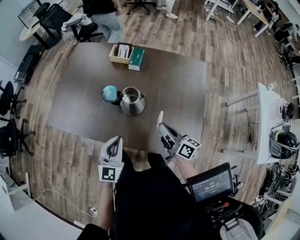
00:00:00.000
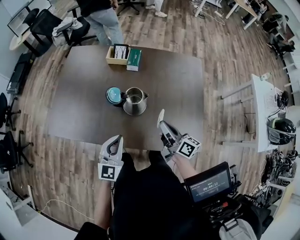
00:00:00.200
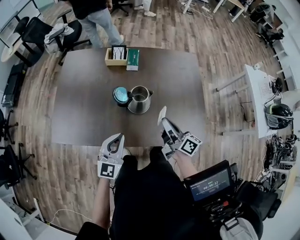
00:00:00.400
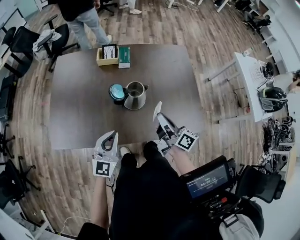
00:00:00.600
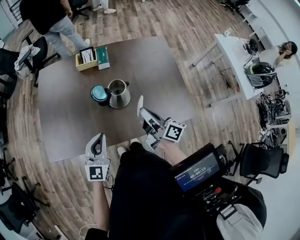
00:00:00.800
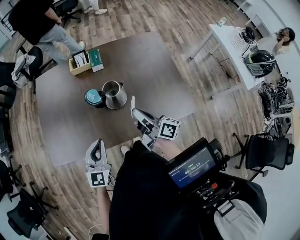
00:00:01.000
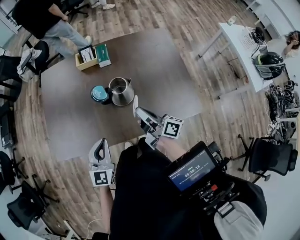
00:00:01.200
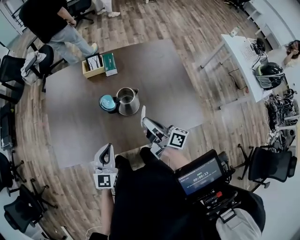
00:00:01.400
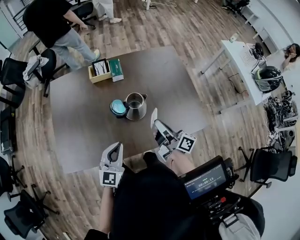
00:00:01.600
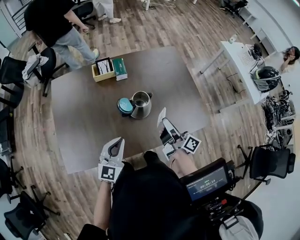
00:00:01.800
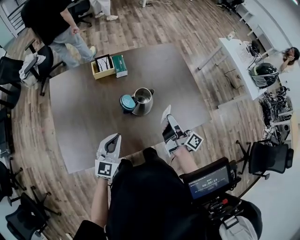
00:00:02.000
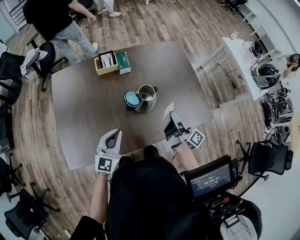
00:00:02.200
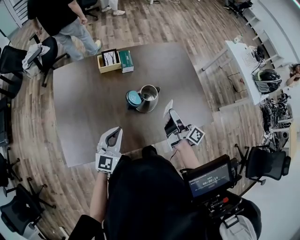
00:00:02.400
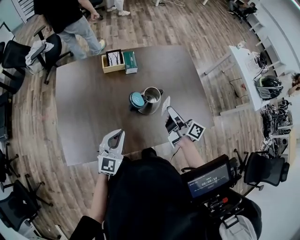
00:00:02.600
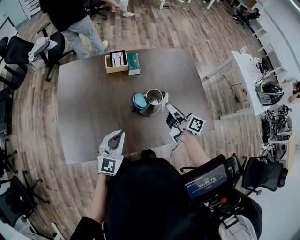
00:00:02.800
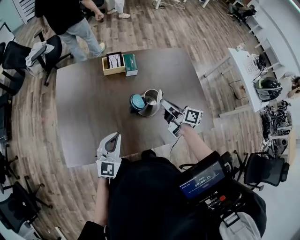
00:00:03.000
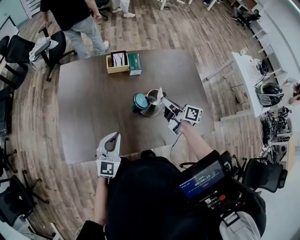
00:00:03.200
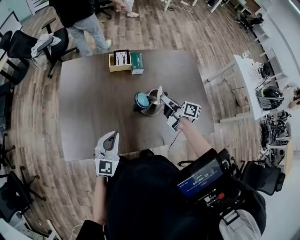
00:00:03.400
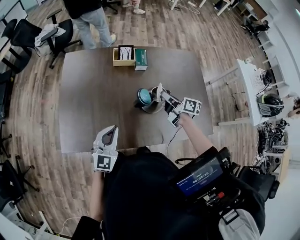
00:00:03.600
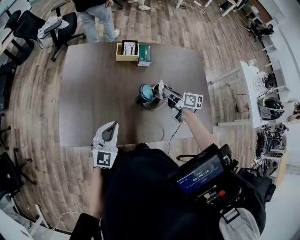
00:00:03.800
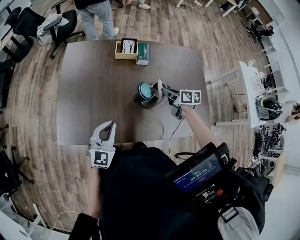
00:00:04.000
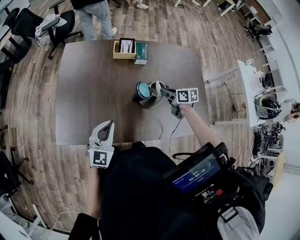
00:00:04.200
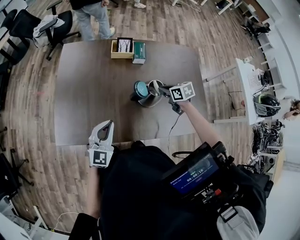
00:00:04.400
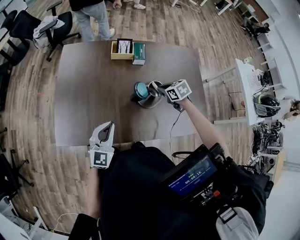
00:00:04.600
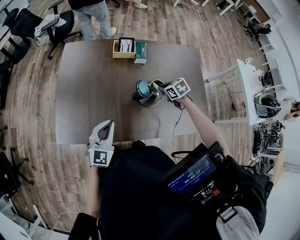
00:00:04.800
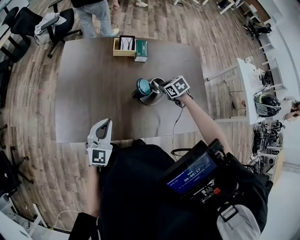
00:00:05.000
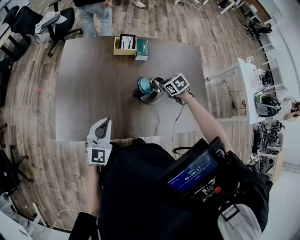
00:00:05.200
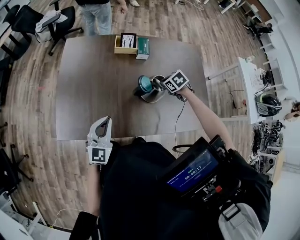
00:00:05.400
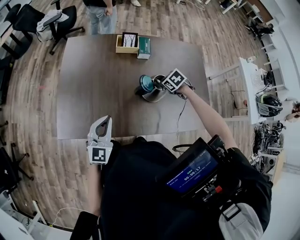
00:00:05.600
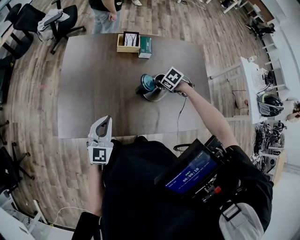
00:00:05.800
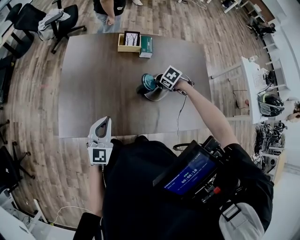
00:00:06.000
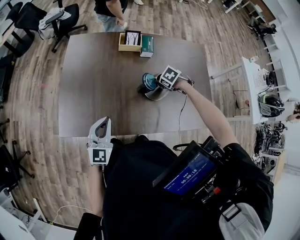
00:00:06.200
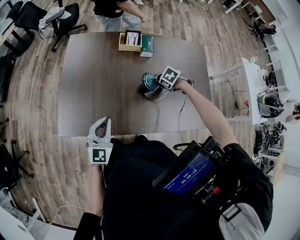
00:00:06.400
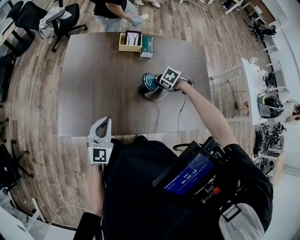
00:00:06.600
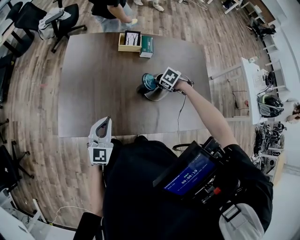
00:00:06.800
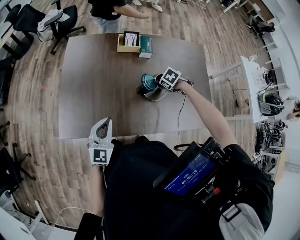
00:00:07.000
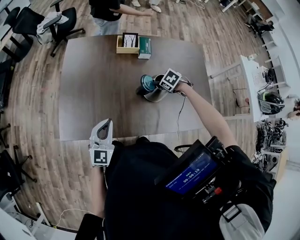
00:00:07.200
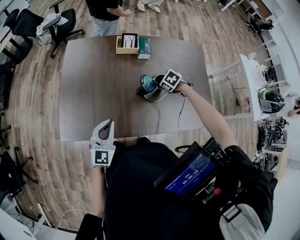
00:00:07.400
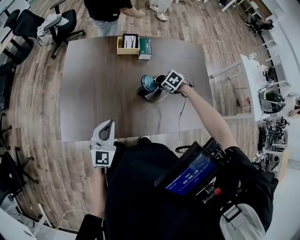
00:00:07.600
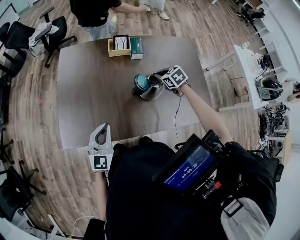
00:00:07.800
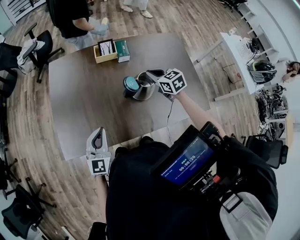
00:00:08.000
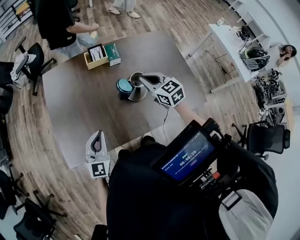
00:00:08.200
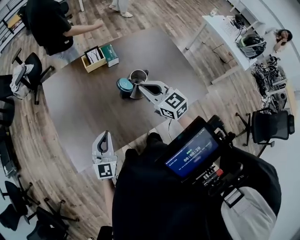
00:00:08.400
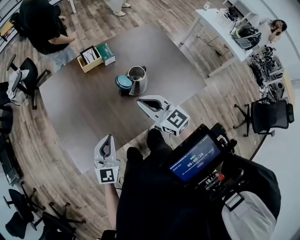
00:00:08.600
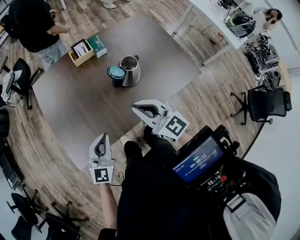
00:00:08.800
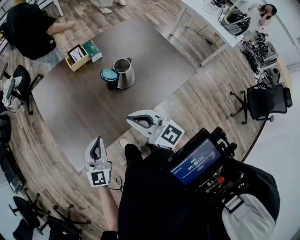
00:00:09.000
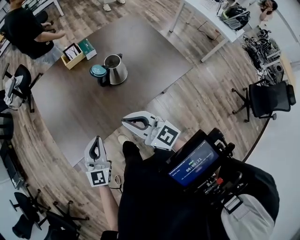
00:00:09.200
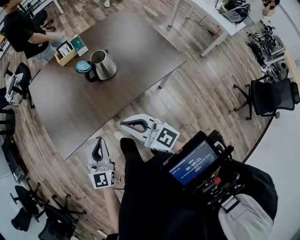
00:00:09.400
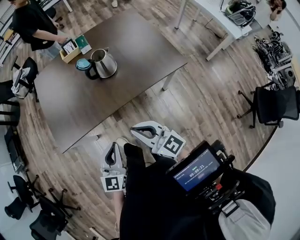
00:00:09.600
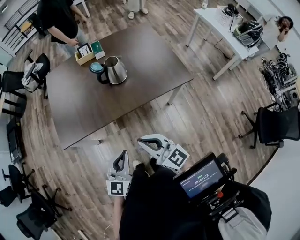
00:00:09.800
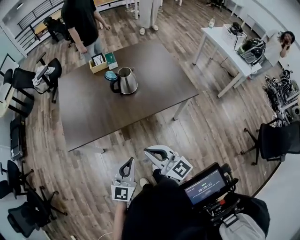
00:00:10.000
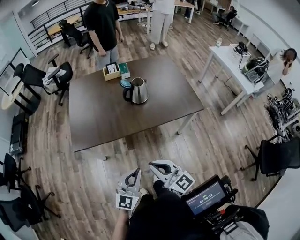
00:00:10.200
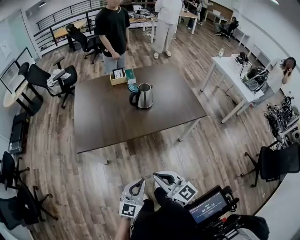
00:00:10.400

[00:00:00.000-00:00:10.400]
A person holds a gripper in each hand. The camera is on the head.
00:00:00.000 to 00:00:01.400: The grippers both shift to the left by some 15 cm. The right gripper rotates about 20 degrees. Meanwhile the left gripper changes its angle by roughly 20 degrees.
00:00:01.400 to 00:00:03.000: The left gripper is displaced to the left by some 10 cm, while the right gripper goes some 10 cm forward and to the left.
00:00:03.000 to 00:00:04.400: The right gripper moves downward, about 10 cm, and tilts its fingers approximately 40 degrees downward.
00:00:04.400 to 00:00:06.000: The right gripper travels downward by some 5 cm, and tilts its fingers about 30 degrees downward.
00:00:06.000 to 00:00:07.400: Both grippers stay put.
00:00:07.400 to 00:00:09.000: The left gripper shifts by roughly 5 cm, and turns by some 20 degrees; the right gripper changes place by some 40 cm, and tips its fingers upward by roughly 70 degrees.
00:00:09.000 to 00:00:10.400: Both grippers travel together backward, about 40 cm.

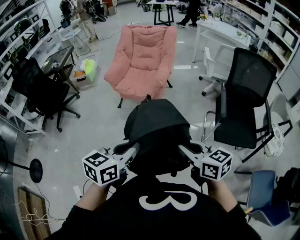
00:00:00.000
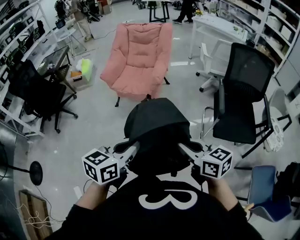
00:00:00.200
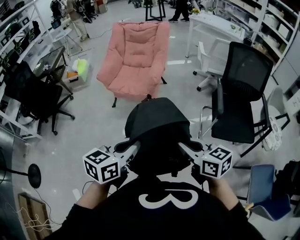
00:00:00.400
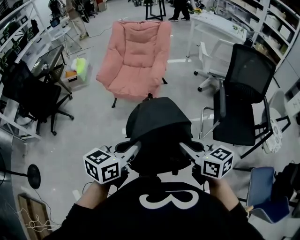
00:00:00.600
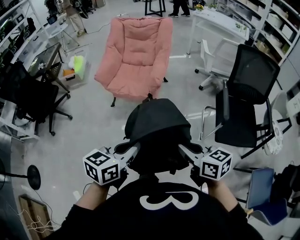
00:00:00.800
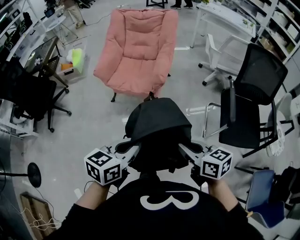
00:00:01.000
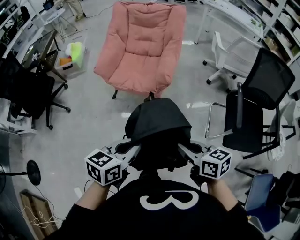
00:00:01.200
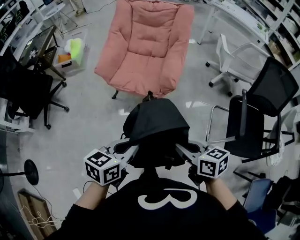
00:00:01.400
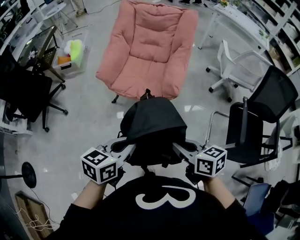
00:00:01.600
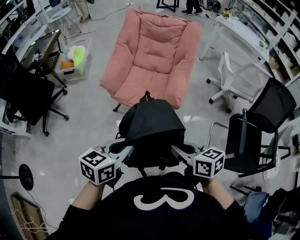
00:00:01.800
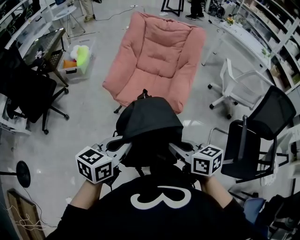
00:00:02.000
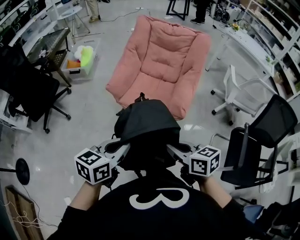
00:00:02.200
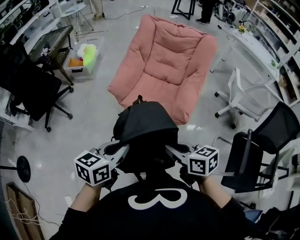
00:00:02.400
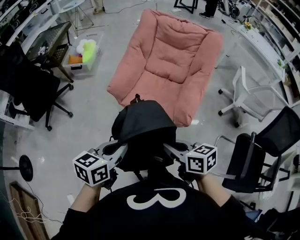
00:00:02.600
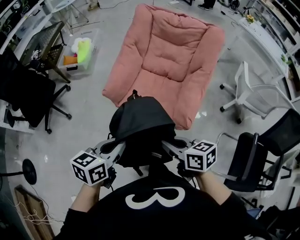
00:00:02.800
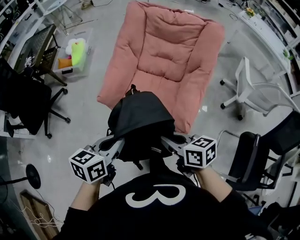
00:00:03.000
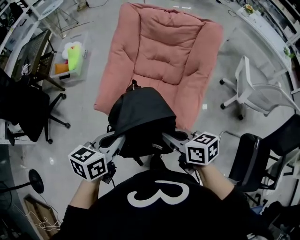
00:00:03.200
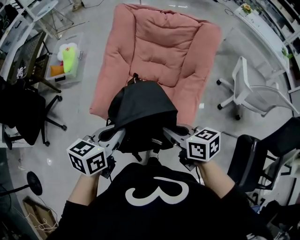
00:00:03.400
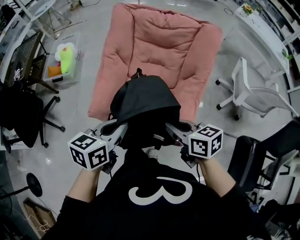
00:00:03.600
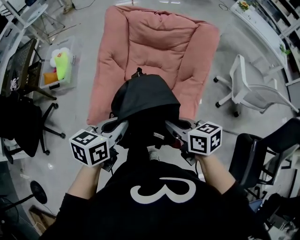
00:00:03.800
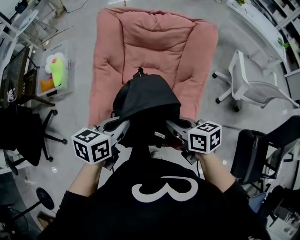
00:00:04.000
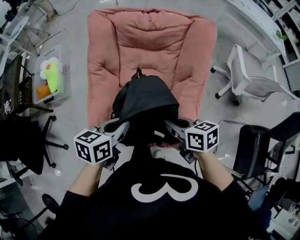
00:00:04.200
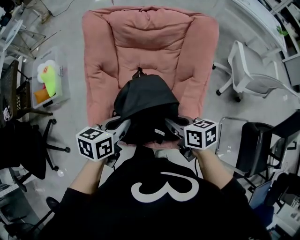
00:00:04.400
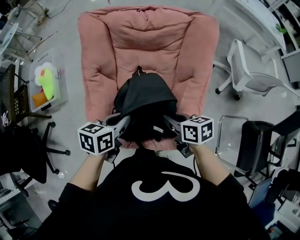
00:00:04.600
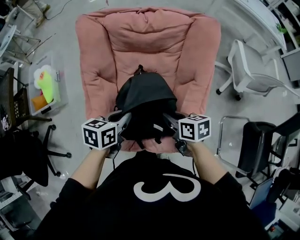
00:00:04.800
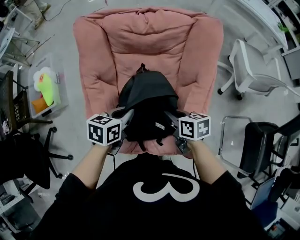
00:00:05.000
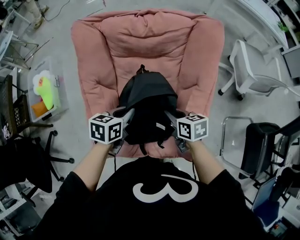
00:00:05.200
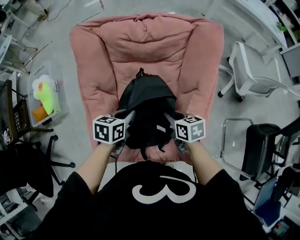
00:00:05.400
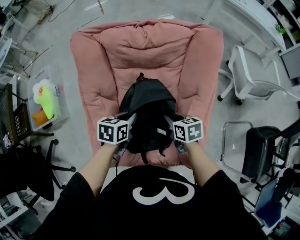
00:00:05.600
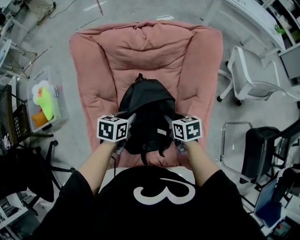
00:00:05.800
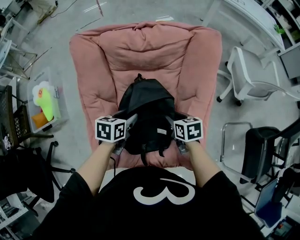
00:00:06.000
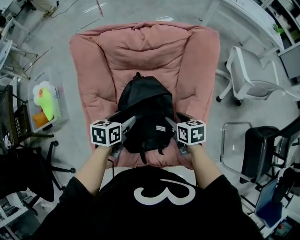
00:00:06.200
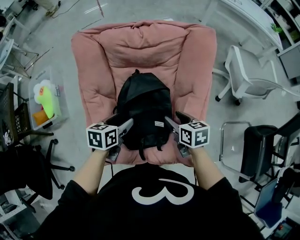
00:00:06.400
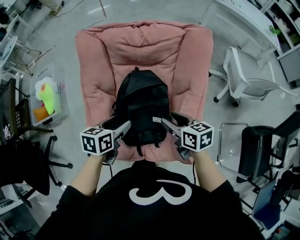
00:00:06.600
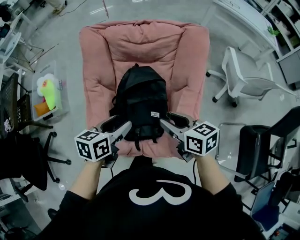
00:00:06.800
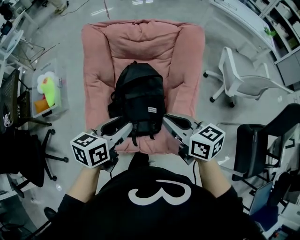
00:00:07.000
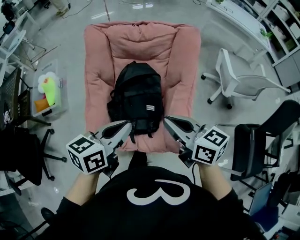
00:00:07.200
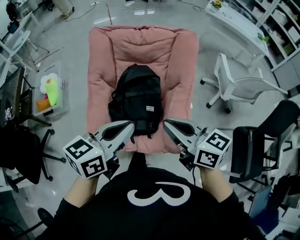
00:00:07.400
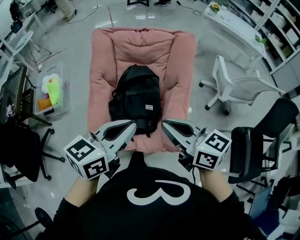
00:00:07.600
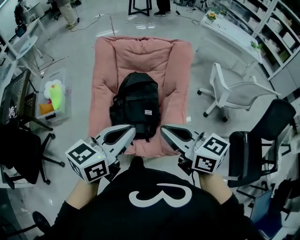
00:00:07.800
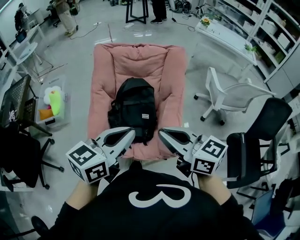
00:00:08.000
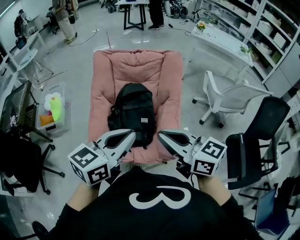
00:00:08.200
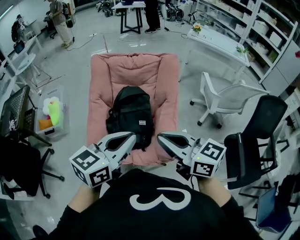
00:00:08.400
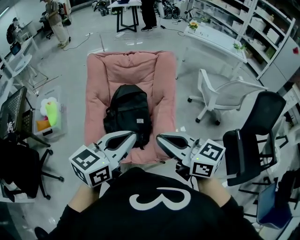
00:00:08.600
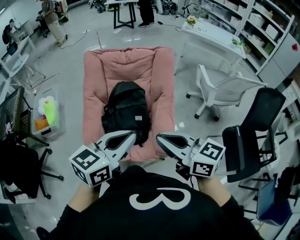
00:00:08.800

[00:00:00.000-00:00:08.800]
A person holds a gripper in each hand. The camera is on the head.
00:00:00.000 to 00:00:01.400: The two grippers go approximately 30 cm forward and downward.
00:00:01.400 to 00:00:03.000: The grippers both shift forward by about 35 cm.
00:00:03.000 to 00:00:04.400: Both grippers move forward, some 30 cm. The right gripper swivels about 20 degrees.
00:00:04.400 to 00:00:05.800: Both grippers travel together forward and downward, roughly 20 cm.
00:00:05.800 to 00:00:07.400: The grippers both shift upward and backward by approximately 40 cm. The right gripper tilts its fingers roughly 40 degrees upward, and opens, then closes again; the left gripper tilts its fingers approximately 30 degrees upward, and opens, then closes again.
00:00:07.400 to 00:00:08.800: Both grippers move backward and upward, some 15 cm.

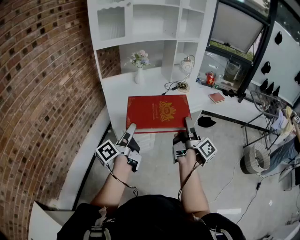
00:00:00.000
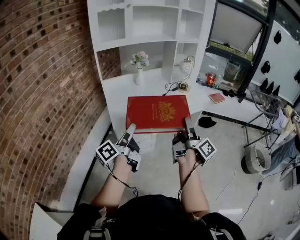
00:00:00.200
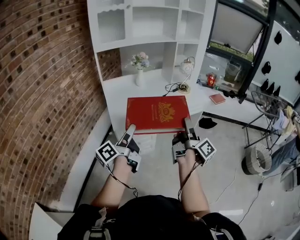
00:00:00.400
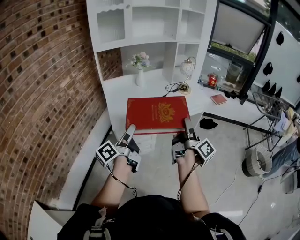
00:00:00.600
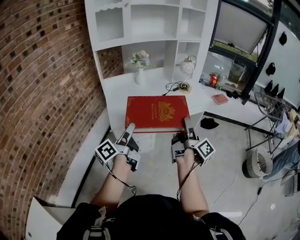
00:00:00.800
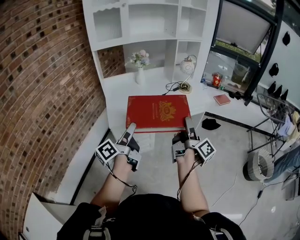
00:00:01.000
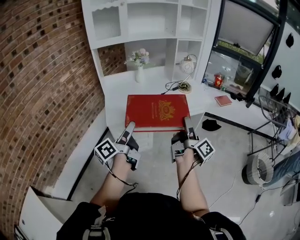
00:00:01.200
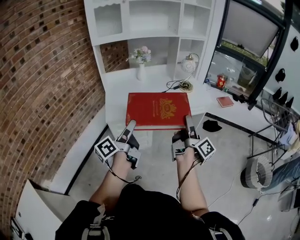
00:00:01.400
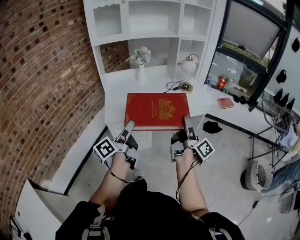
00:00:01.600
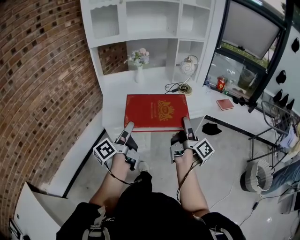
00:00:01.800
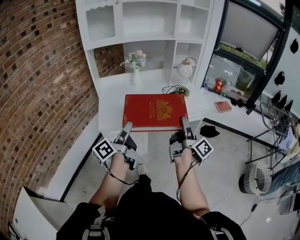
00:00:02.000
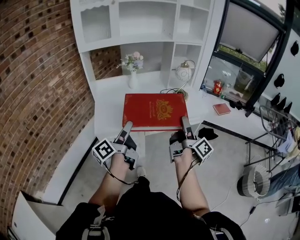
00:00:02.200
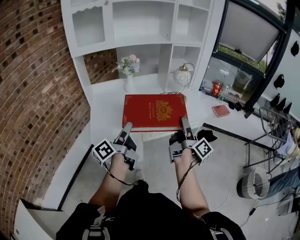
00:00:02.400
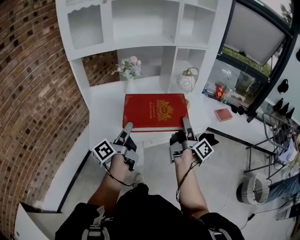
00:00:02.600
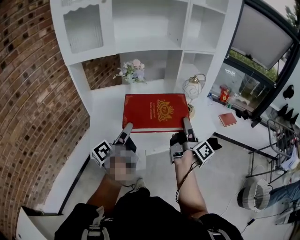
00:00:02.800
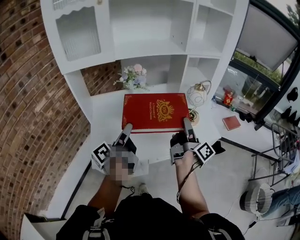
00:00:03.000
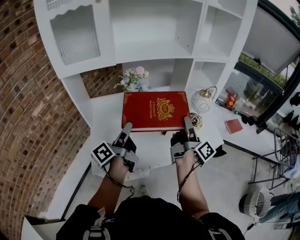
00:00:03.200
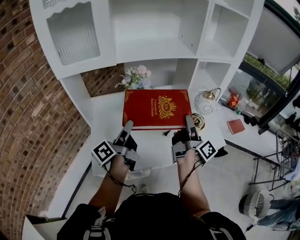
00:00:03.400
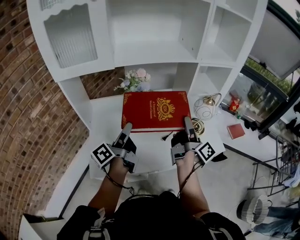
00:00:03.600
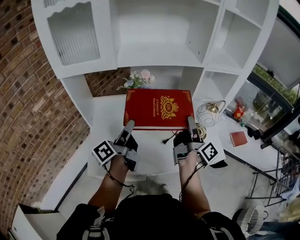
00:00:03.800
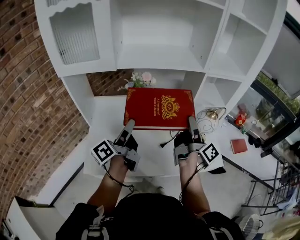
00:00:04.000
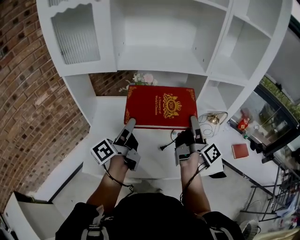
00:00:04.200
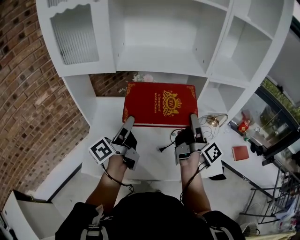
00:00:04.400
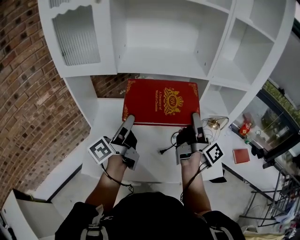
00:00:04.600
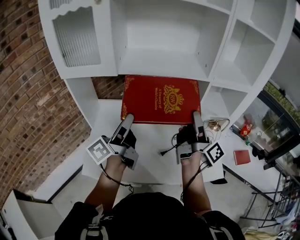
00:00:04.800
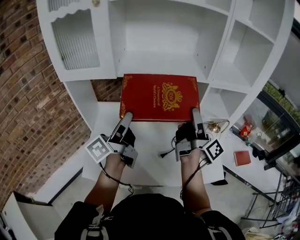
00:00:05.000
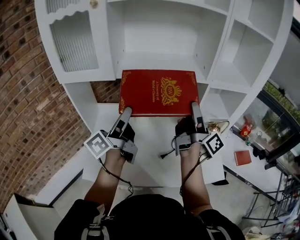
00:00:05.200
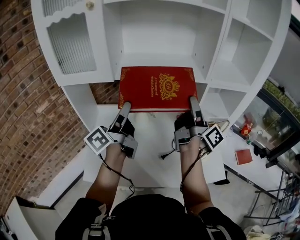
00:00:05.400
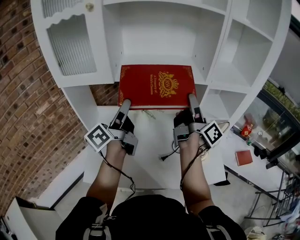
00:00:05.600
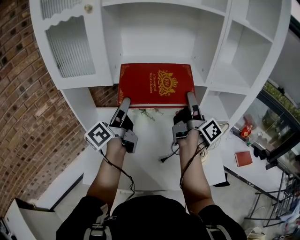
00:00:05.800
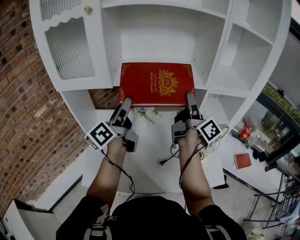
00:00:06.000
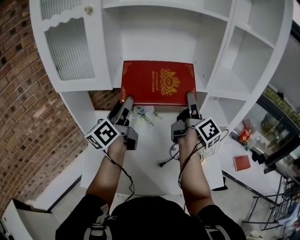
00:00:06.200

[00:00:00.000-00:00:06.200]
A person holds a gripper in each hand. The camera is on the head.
00:00:00.000 to 00:00:01.600: The left gripper heads to the right, covering some 15 cm. Meanwhile the right gripper goes approximately 15 cm to the right and forward.
00:00:01.600 to 00:00:03.200: The pair of grippers is taken forward, approximately 50 cm.
00:00:03.200 to 00:00:04.600: Both grippers move forward and upward, roughly 15 cm.
00:00:04.600 to 00:00:06.200: Both grippers move forward and upward, approximately 15 cm. The left gripper changes its angle by about 30 degrees.
